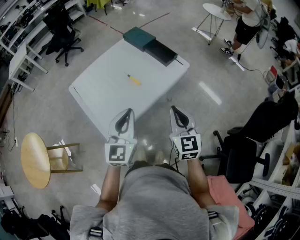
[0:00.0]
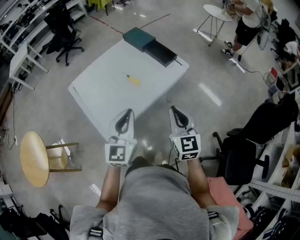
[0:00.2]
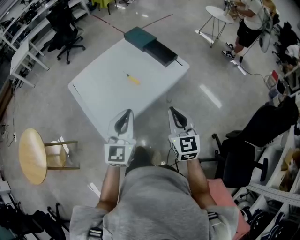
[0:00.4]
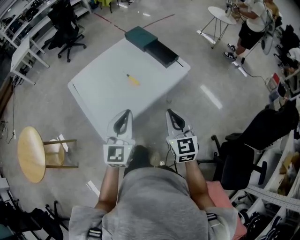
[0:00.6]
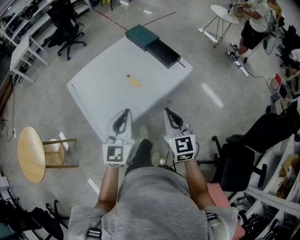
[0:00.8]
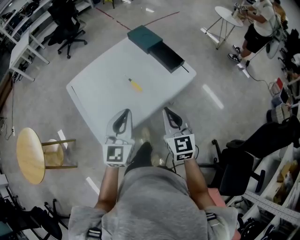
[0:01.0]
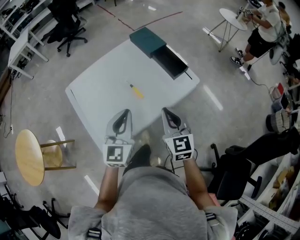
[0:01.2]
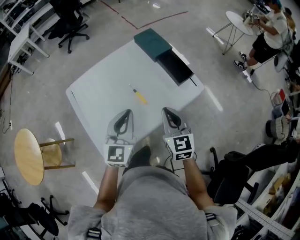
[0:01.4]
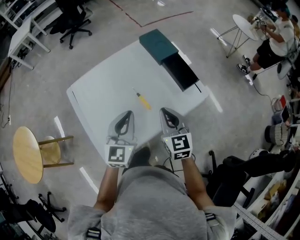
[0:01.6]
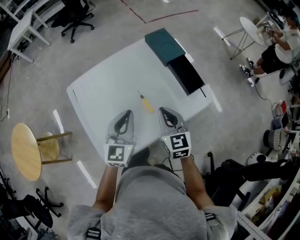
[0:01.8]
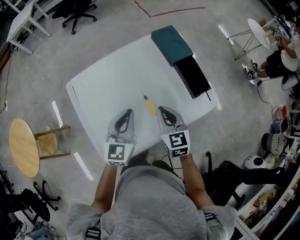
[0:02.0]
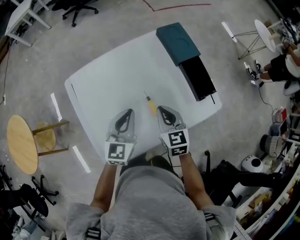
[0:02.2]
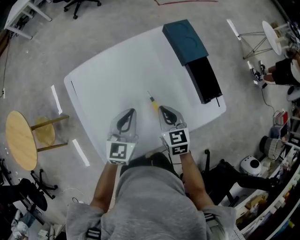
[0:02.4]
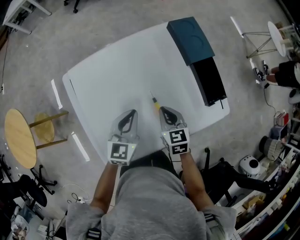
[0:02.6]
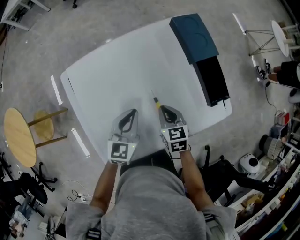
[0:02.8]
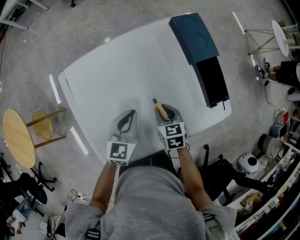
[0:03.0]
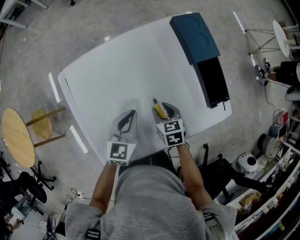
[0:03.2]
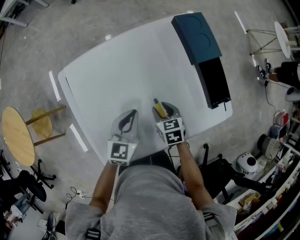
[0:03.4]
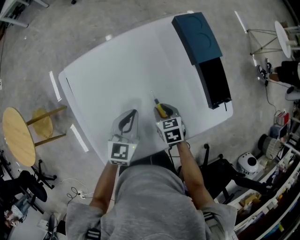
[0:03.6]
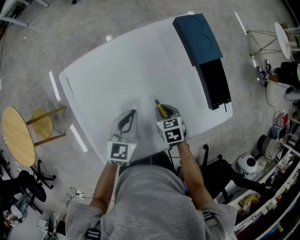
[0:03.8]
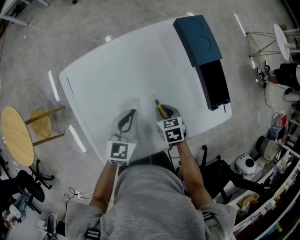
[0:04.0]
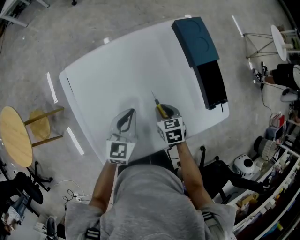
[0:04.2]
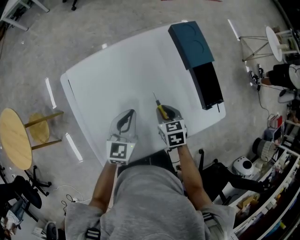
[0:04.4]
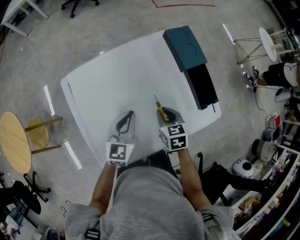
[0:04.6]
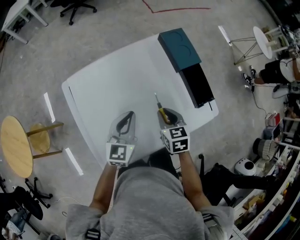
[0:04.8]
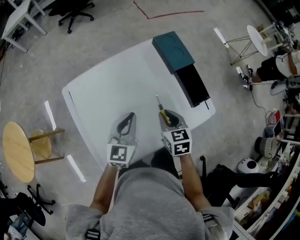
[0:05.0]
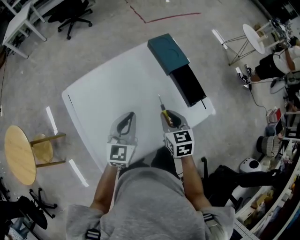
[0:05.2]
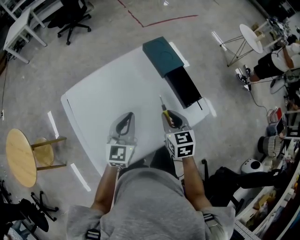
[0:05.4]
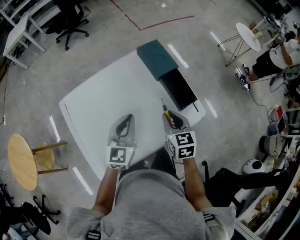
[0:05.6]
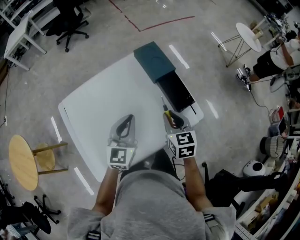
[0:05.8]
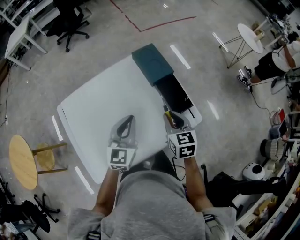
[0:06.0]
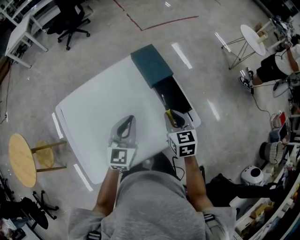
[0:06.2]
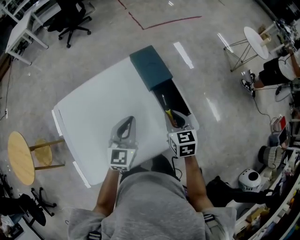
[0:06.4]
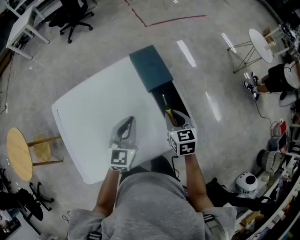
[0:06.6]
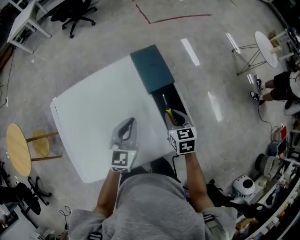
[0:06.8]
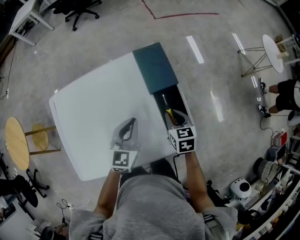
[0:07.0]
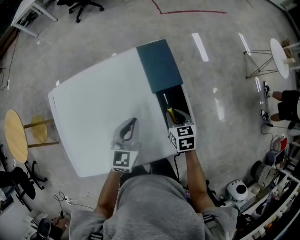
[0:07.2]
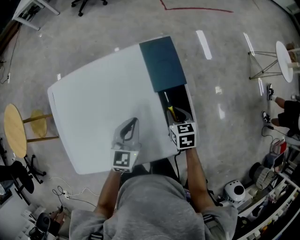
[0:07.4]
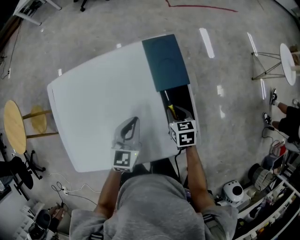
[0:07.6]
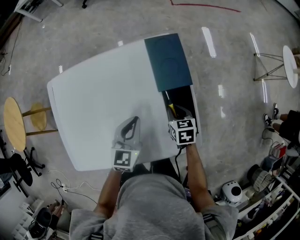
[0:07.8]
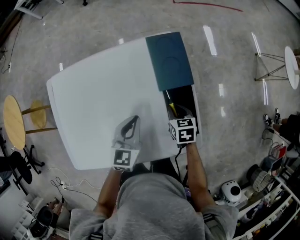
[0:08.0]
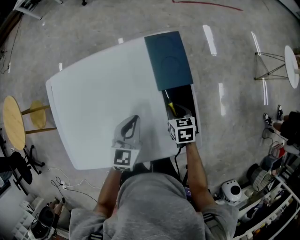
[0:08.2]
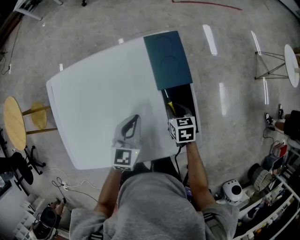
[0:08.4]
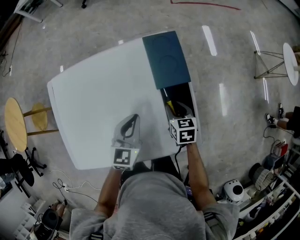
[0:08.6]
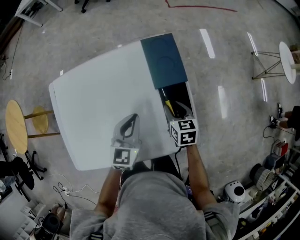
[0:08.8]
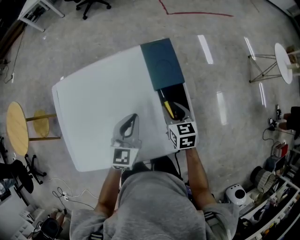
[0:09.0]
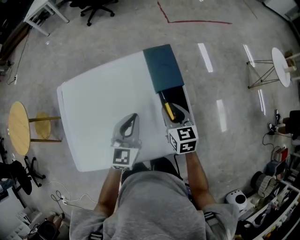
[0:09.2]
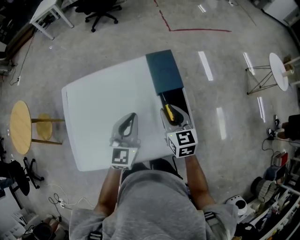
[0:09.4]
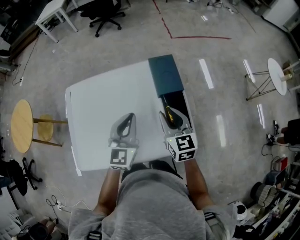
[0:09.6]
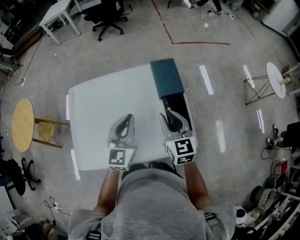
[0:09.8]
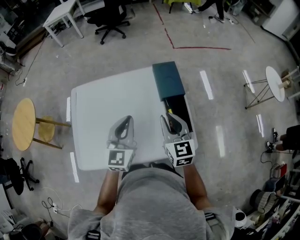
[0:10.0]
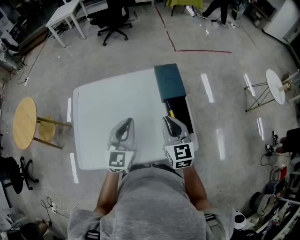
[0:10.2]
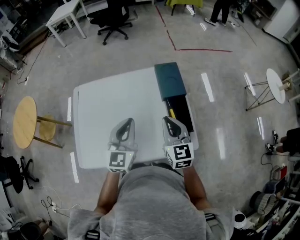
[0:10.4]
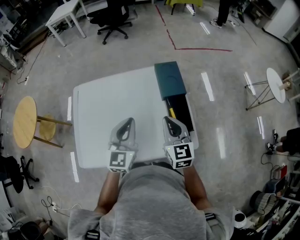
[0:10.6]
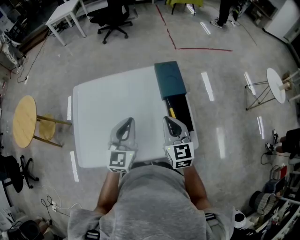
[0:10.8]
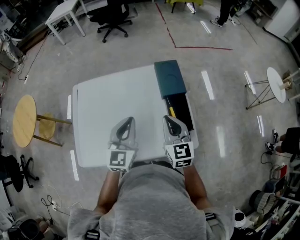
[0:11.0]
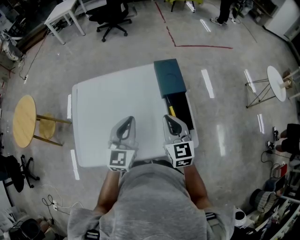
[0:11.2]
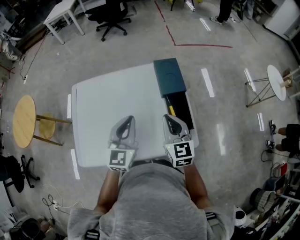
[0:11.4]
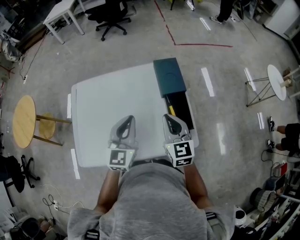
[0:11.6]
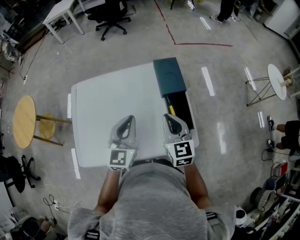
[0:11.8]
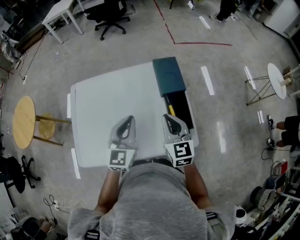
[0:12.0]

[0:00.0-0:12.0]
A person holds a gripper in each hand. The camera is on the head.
0.0 to 1.6 s: The grippers both shift forward by approximately 20 cm.
1.6 to 3.0 s: The two grippers go approximately 20 cm downward and forward. The left gripper changes its angle by roughly 20 degrees. The right gripper rotates some 30 degrees, and opens up.
3.0 to 4.4 s: The grippers move only a little.
4.4 to 6.0 s: The grippers both shift to the right and upward by about 20 cm. The right gripper turns by approximately 20 degrees.
6.0 to 7.6 s: The left gripper is displaced downward, forward and to the right by roughly 15 cm, and turns by roughly 20 degrees. Meanwhile the right gripper travels downward and forward by some 20 cm, and changes its angle by approximately 30 degrees.
7.6 to 9.0 s: The right gripper heads upward, covering about 5 cm.
9.0 to 10.4 s: The left gripper is displaced upward, to the left and backward by some 15 cm. The right gripper goes about 20 cm upward, backward and to the left, rotates about 30 degrees, and closes.
10.4 to 12.0 s: The grippers stay close to where they were, moving slightly.

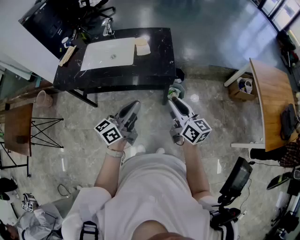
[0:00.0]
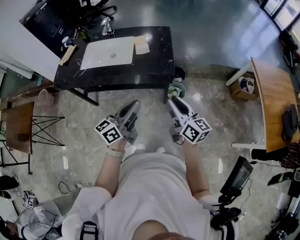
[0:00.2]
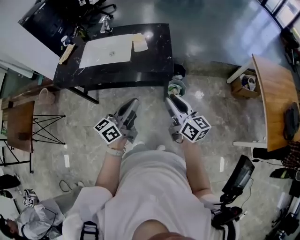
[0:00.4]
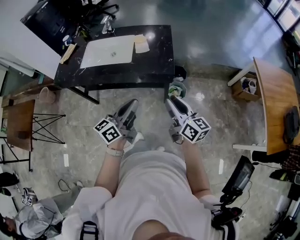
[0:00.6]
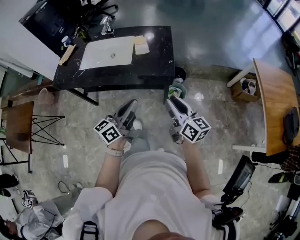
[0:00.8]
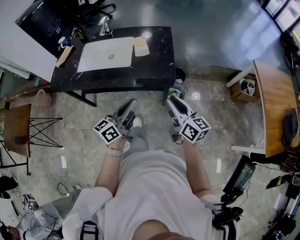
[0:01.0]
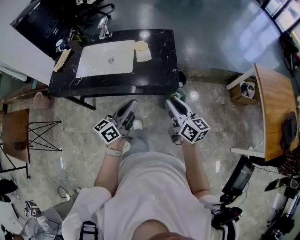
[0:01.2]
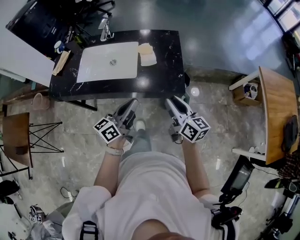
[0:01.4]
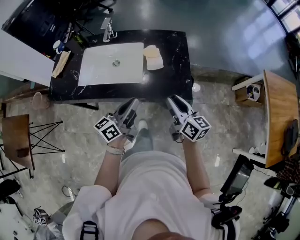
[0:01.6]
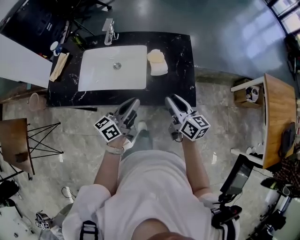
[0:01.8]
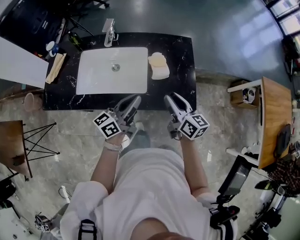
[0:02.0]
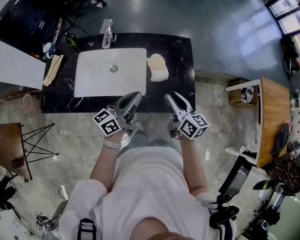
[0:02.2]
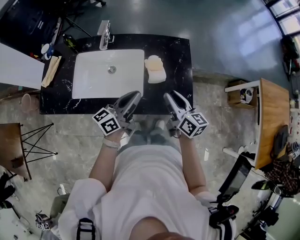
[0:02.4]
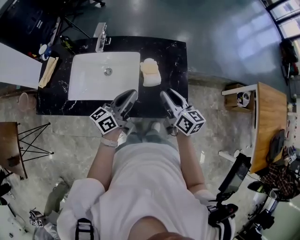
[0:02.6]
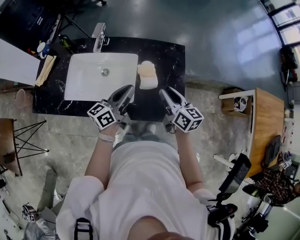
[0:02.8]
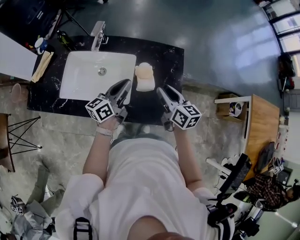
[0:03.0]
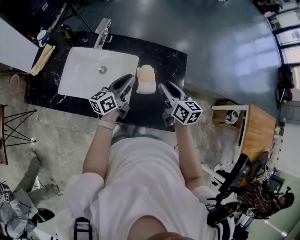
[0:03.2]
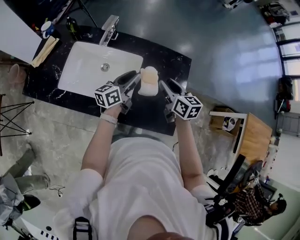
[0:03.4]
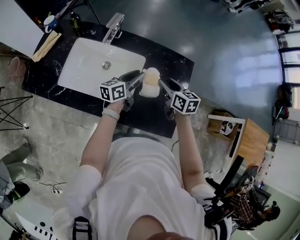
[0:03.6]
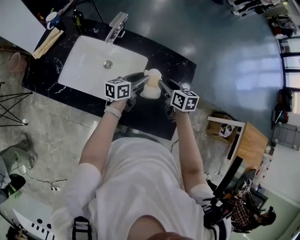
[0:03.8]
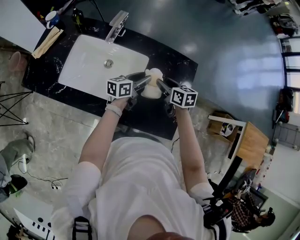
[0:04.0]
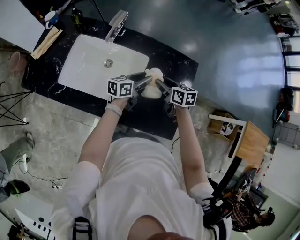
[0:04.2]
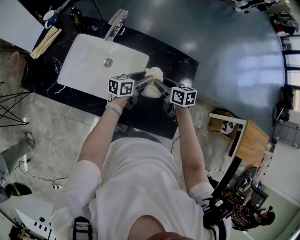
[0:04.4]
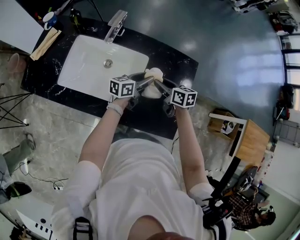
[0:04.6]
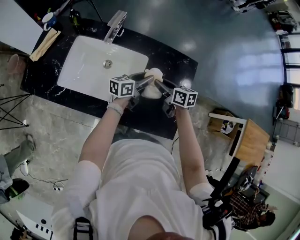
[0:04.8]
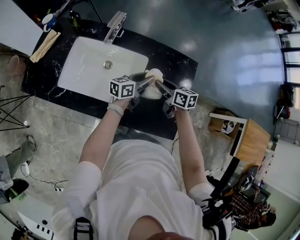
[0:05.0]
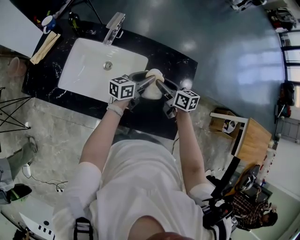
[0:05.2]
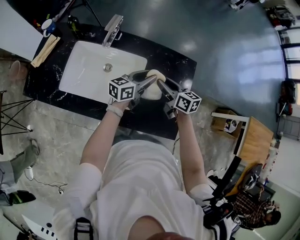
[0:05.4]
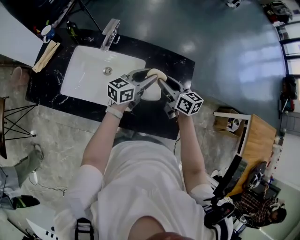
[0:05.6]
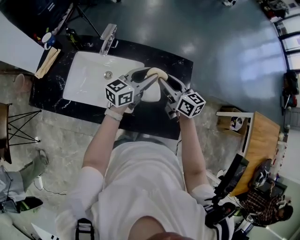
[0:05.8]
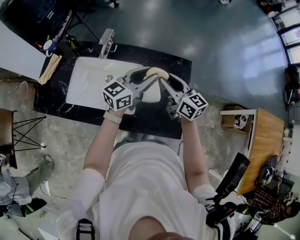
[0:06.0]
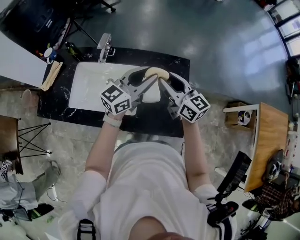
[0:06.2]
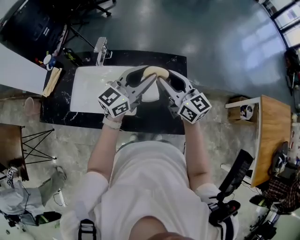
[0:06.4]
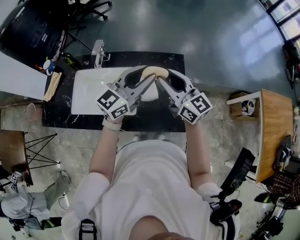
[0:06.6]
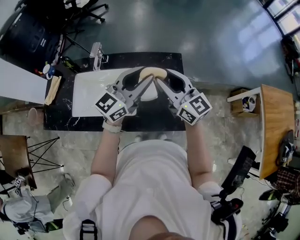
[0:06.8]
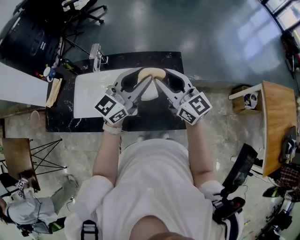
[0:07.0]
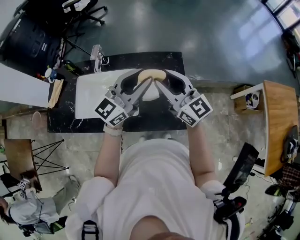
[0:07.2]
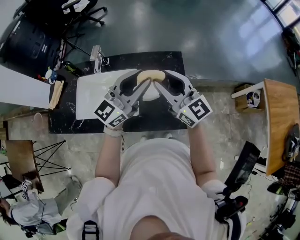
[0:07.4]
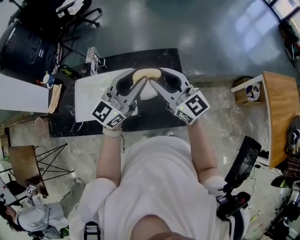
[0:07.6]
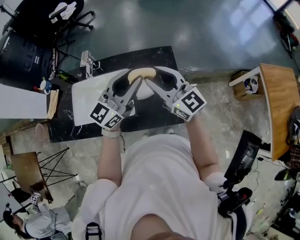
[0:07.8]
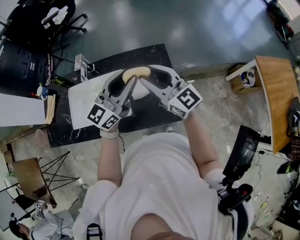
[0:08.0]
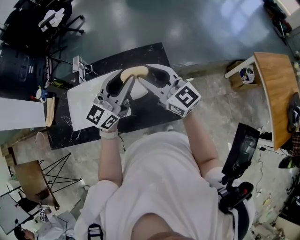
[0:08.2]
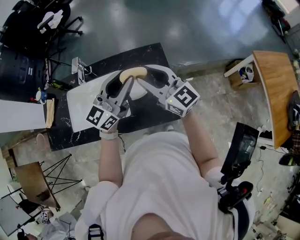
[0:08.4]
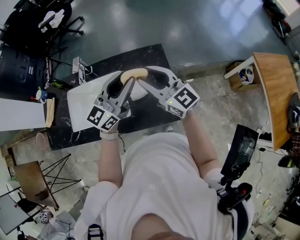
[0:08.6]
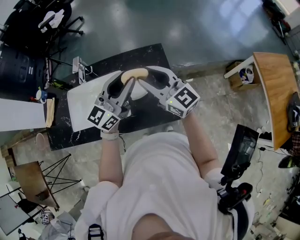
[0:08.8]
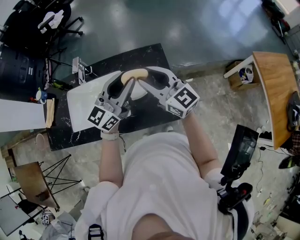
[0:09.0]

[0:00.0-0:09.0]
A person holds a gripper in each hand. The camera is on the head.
0.0 to 1.6 s: The left gripper travels forward and to the left by about 25 cm. Meanwhile the right gripper moves forward, some 25 cm.
1.6 to 3.0 s: Both grippers travel together forward, approximately 20 cm.
3.0 to 4.4 s: The left gripper shifts approximately 15 cm downward, forward and to the right, and opens up. The right gripper heads downward and forward, covering roughly 15 cm, and rotates some 30 degrees.
4.4 to 6.0 s: The grippers both shift upward by about 20 cm. The right gripper tips its fingers upward by roughly 30 degrees. Meanwhile the left gripper changes its angle by about 30 degrees.
6.0 to 7.6 s: The two grippers go roughly 15 cm upward and backward. The right gripper changes its angle by roughly 30 degrees.
7.6 to 9.0 s: The grippers stay close to where they were, moving slightly.

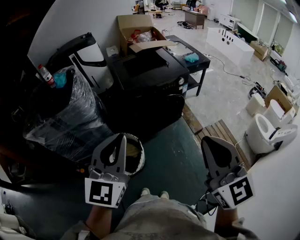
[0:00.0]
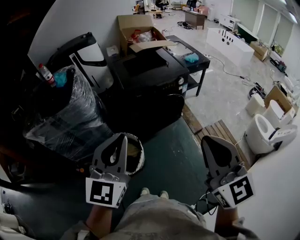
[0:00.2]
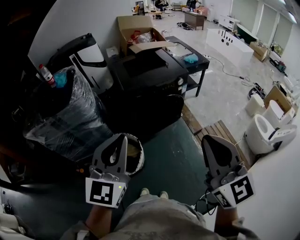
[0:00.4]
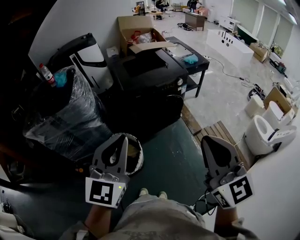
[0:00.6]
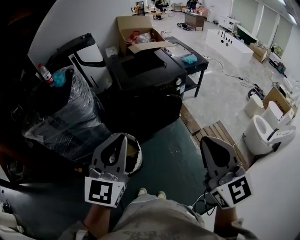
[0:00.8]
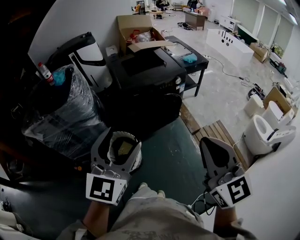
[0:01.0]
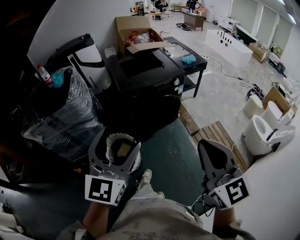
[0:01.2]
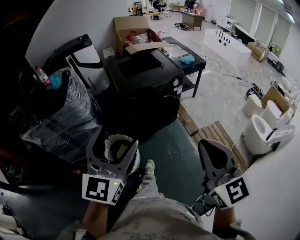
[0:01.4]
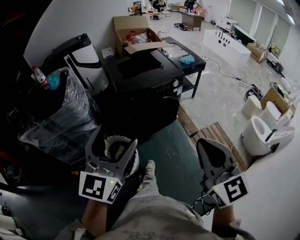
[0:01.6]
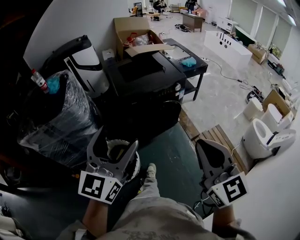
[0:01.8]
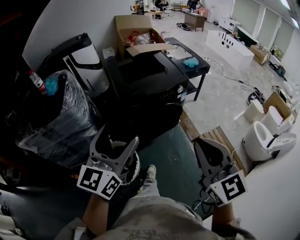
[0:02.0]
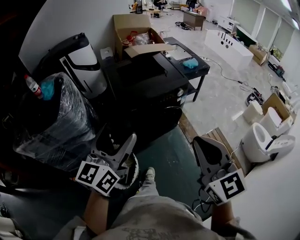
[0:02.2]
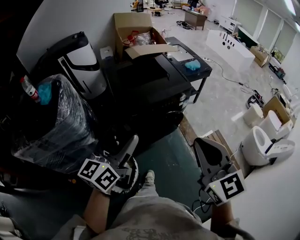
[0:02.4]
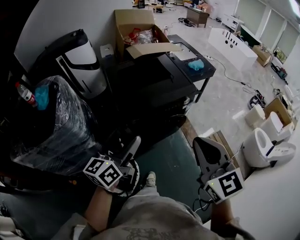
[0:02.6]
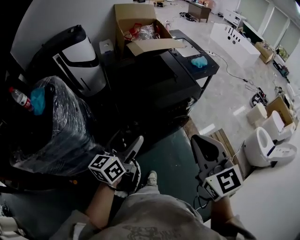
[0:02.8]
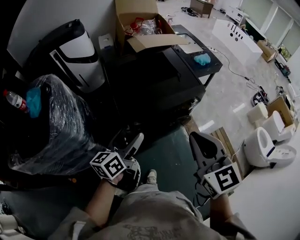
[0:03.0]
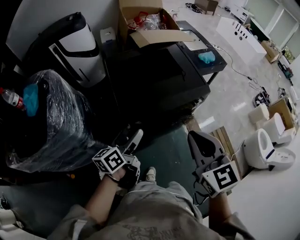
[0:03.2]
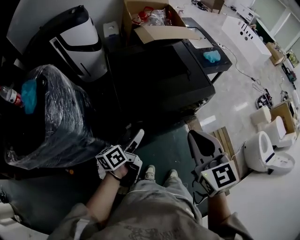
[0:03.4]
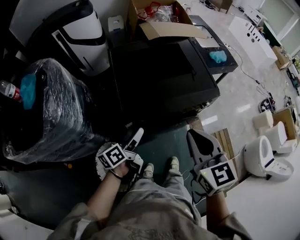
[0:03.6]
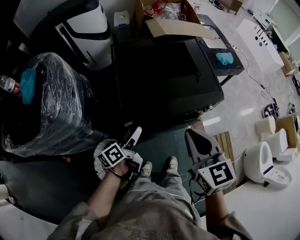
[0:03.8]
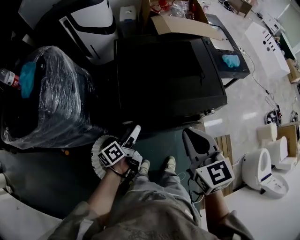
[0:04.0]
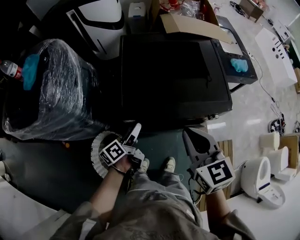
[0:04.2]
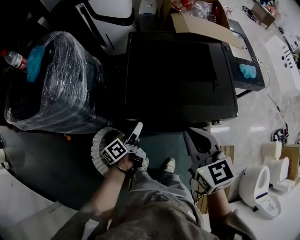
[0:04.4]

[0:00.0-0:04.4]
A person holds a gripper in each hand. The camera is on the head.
0.0 to 1.4 s: The left gripper opens up.
1.4 to 3.0 s: The left gripper travels forward and downward by about 40 cm, and rolls counterclockwise, seen from behind, by roughly 50 degrees; the right gripper goes roughly 35 cm forward.
3.0 to 4.4 s: The left gripper moves downward, roughly 20 cm, and turns by roughly 50 degrees. Meanwhile the right gripper ends up about 20 cm from where it was, and turns by about 30 degrees.
